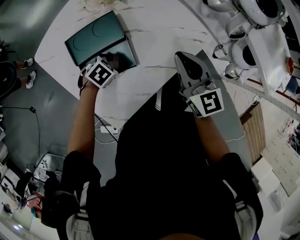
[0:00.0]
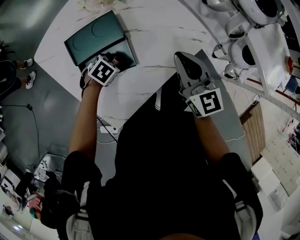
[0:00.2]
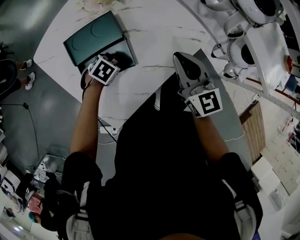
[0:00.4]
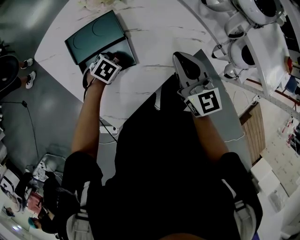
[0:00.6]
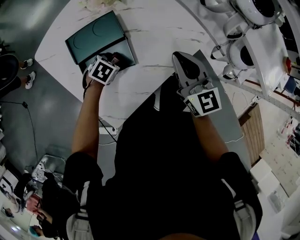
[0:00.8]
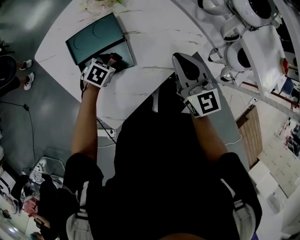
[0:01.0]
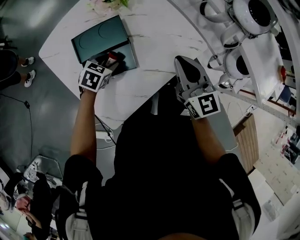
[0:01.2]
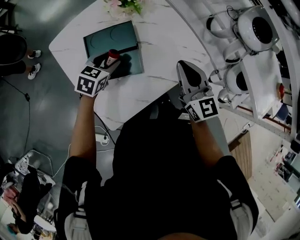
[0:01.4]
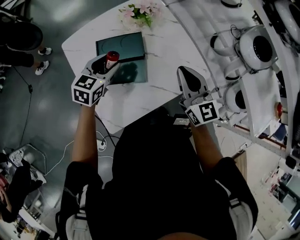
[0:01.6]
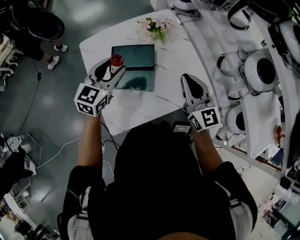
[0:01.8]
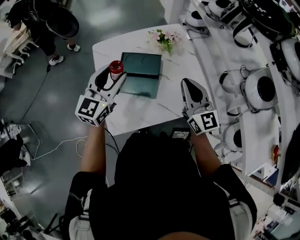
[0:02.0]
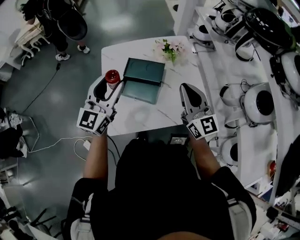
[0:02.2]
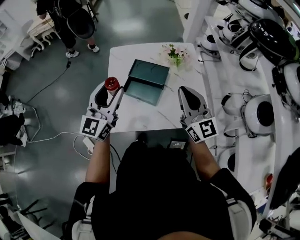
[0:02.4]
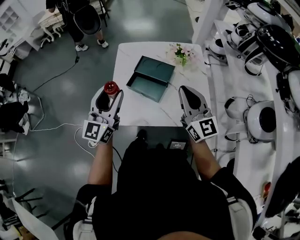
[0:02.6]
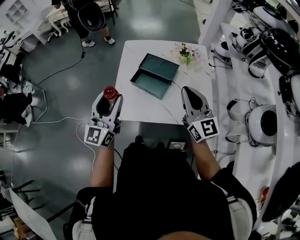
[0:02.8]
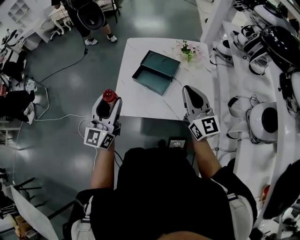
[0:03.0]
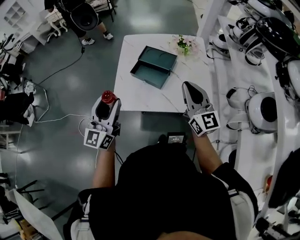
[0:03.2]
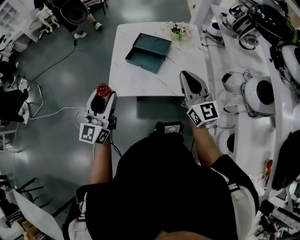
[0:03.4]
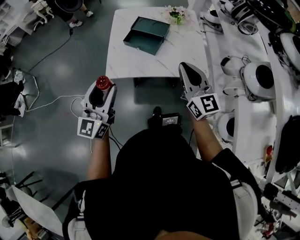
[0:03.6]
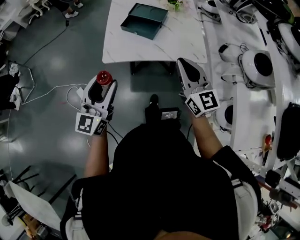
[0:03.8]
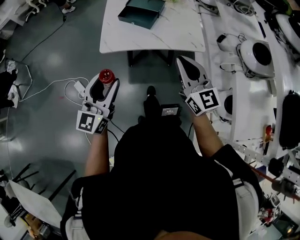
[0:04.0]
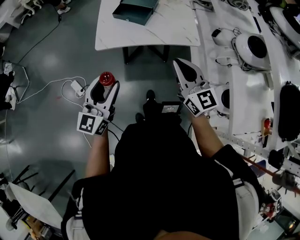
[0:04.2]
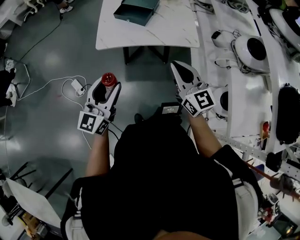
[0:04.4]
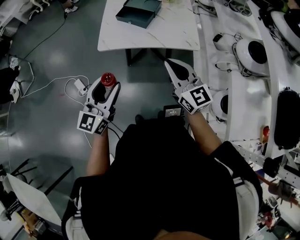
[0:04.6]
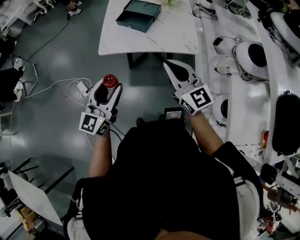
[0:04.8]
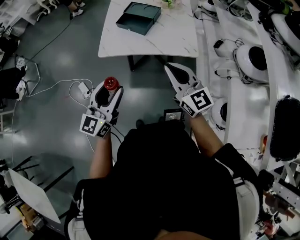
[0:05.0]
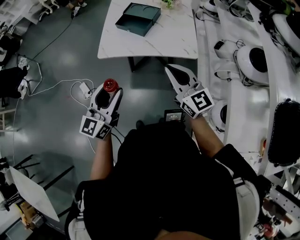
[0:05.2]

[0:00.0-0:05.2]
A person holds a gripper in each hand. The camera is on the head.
0:00.0 to 0:01.8: The right gripper shifts approximately 10 cm upward, and turns by some 20 degrees. Meanwhile the left gripper travels upward by some 30 cm, and tilts its fingers approximately 50 degrees upward.
0:01.8 to 0:03.4: The left gripper changes place by roughly 35 cm, and swivels about 50 degrees, while the right gripper moves roughly 15 cm, and swivels approximately 20 degrees.
0:03.4 to 0:05.2: The right gripper shifts roughly 20 cm backward. Meanwhile the left gripper moves backward and to the right, about 25 cm.

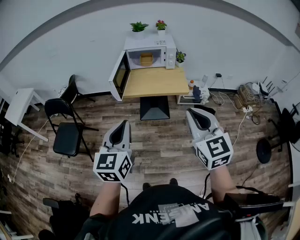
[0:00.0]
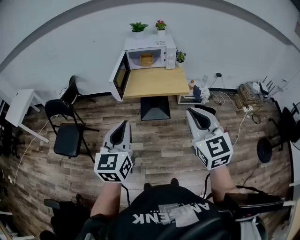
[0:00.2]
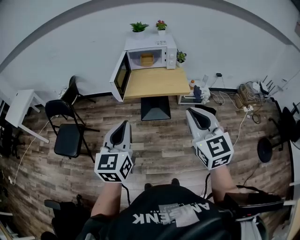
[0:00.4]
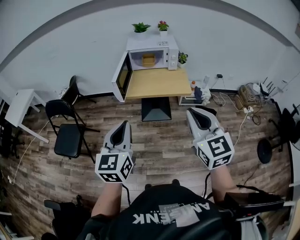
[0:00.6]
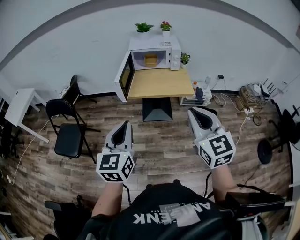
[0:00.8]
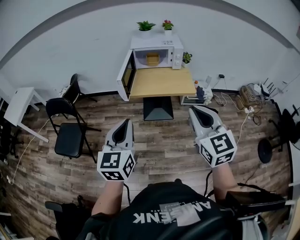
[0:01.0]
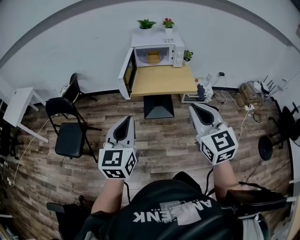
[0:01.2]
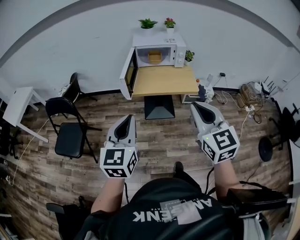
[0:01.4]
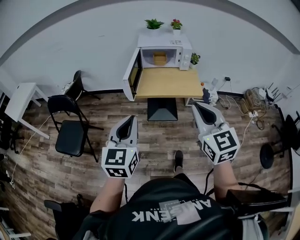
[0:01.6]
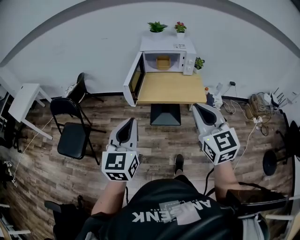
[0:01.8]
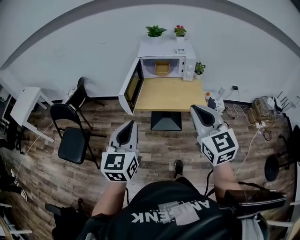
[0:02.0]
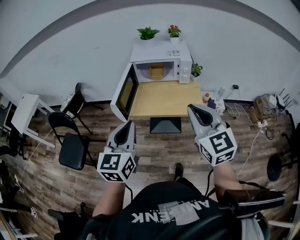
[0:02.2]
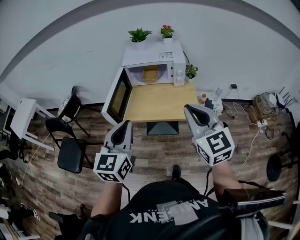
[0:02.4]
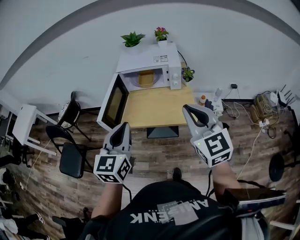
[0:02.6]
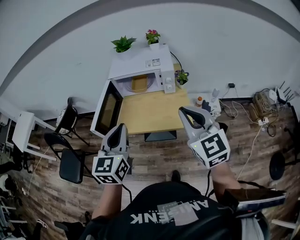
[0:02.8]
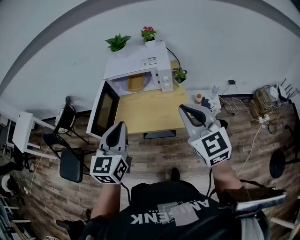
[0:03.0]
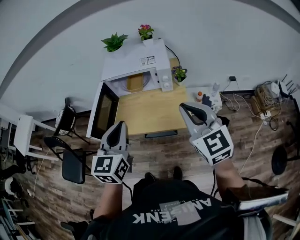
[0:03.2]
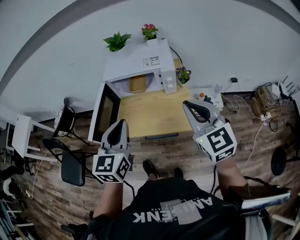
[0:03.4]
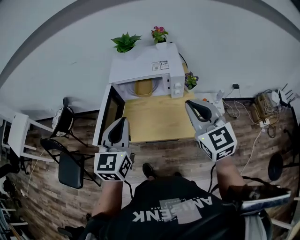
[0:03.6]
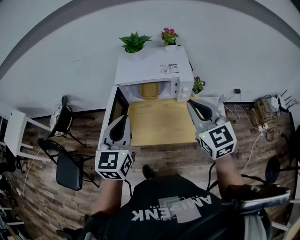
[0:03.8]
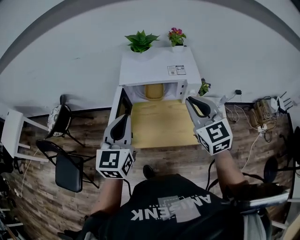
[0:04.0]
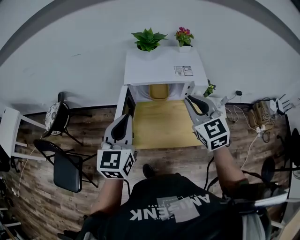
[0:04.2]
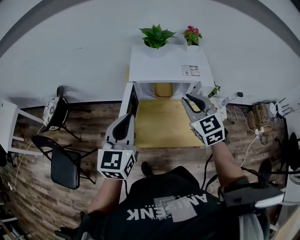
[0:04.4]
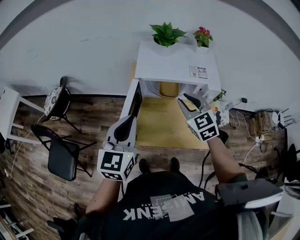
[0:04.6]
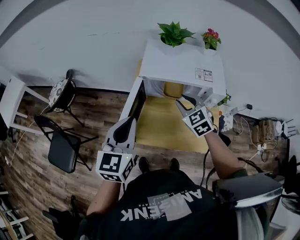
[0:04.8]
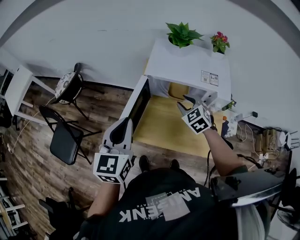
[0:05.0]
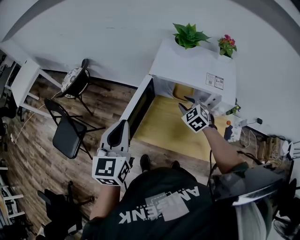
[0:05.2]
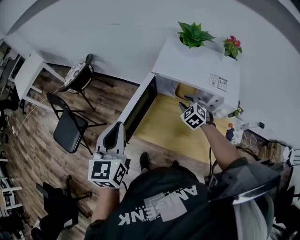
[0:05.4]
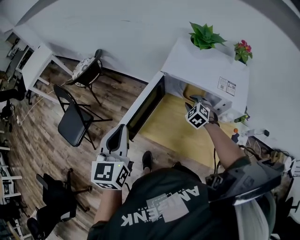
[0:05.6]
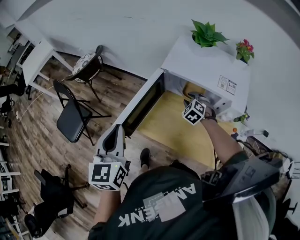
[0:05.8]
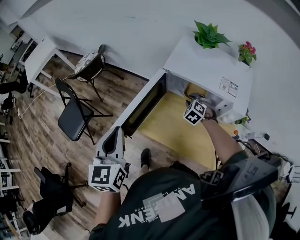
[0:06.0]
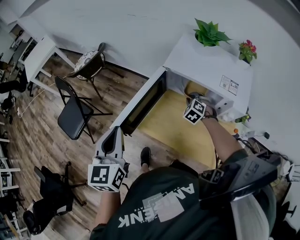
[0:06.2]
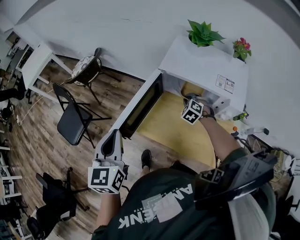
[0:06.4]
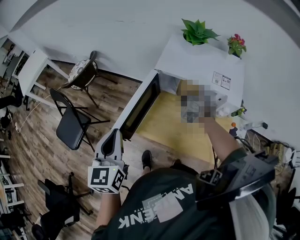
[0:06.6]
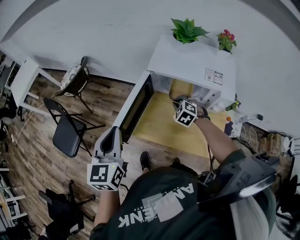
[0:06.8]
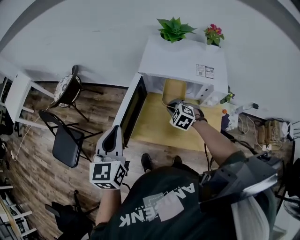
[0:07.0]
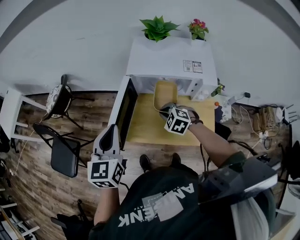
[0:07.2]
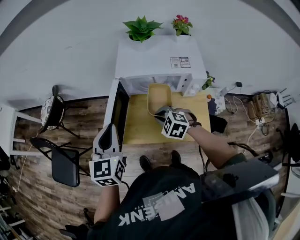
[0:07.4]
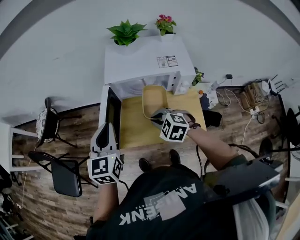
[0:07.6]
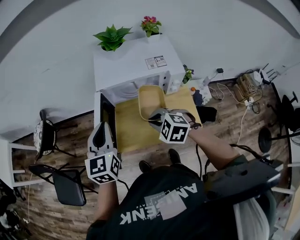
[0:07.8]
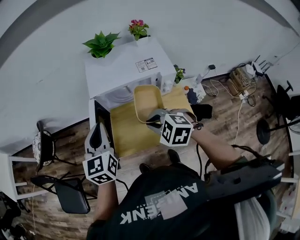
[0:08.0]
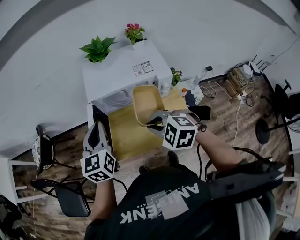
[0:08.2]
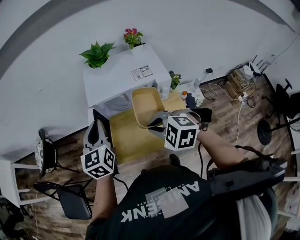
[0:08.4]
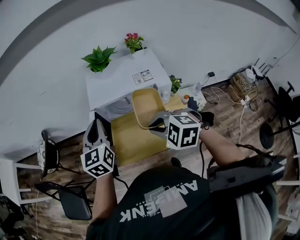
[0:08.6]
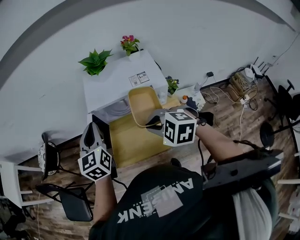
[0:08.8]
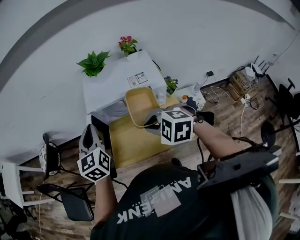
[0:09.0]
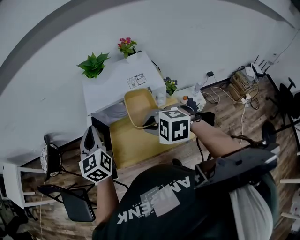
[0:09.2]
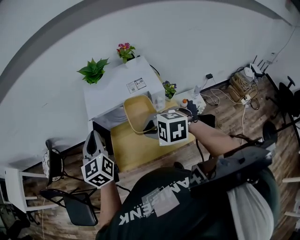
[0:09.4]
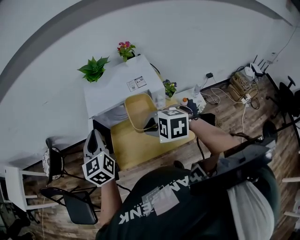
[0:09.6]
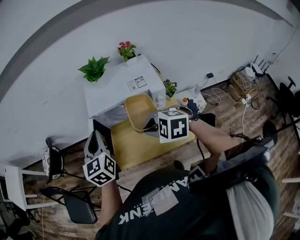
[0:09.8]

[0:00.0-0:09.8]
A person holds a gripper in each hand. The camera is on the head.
0:00.0 to 0:01.4: The two grippers go approximately 5 cm to the left.
0:01.4 to 0:02.8: Both grippers move forward and to the right, approximately 35 cm.
0:02.8 to 0:04.2: The two grippers go about 25 cm forward and to the left.
0:04.2 to 0:05.6: The left gripper heads to the left, covering about 5 cm, and swivels about 30 degrees. Meanwhile the right gripper goes approximately 30 cm downward and forward, tilts its fingers about 30 degrees downward, and opens up.
0:05.6 to 0:07.0: The right gripper shifts about 10 cm backward and to the left, and closes.
0:07.0 to 0:08.4: The left gripper moves forward and to the right, approximately 15 cm. Meanwhile the right gripper goes about 20 cm upward and backward.
0:08.4 to 0:09.8: The grippers stay close to where they were, moving slightly.

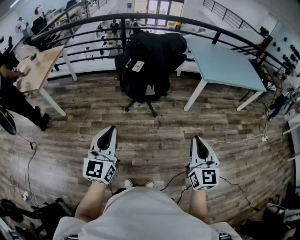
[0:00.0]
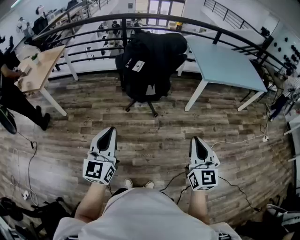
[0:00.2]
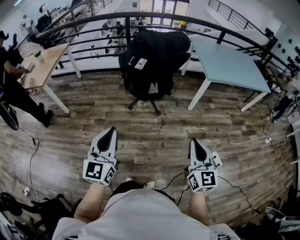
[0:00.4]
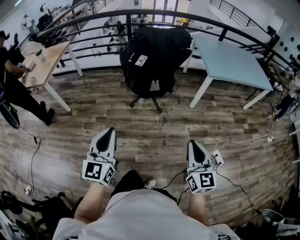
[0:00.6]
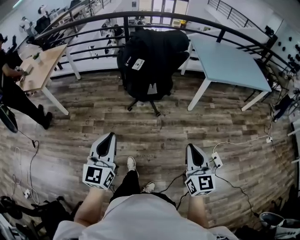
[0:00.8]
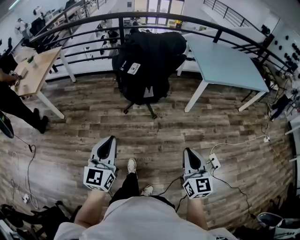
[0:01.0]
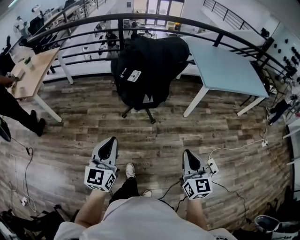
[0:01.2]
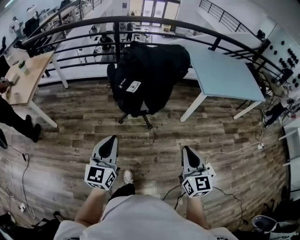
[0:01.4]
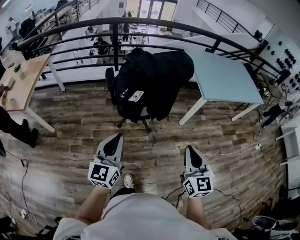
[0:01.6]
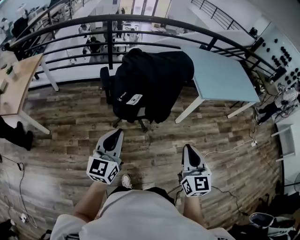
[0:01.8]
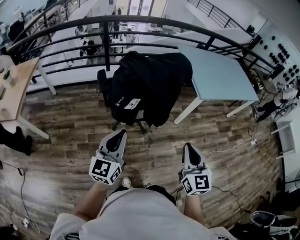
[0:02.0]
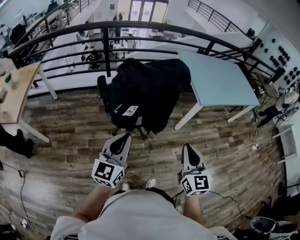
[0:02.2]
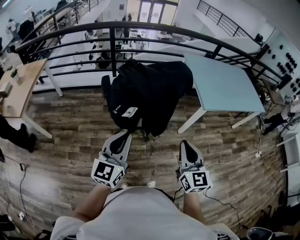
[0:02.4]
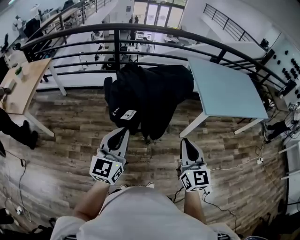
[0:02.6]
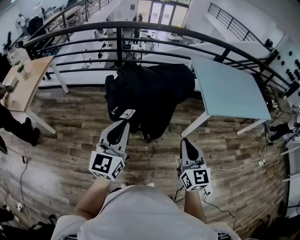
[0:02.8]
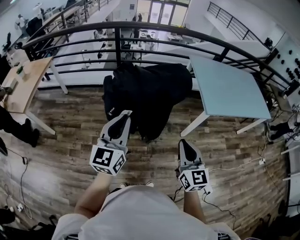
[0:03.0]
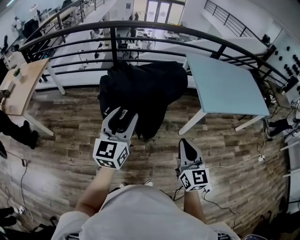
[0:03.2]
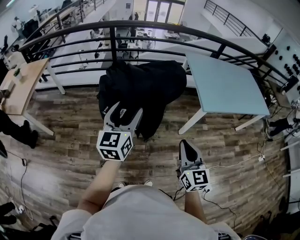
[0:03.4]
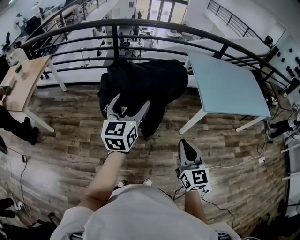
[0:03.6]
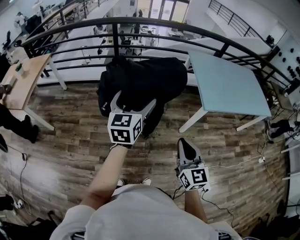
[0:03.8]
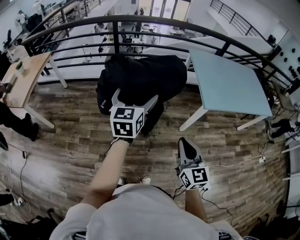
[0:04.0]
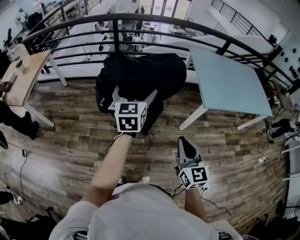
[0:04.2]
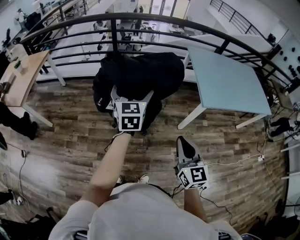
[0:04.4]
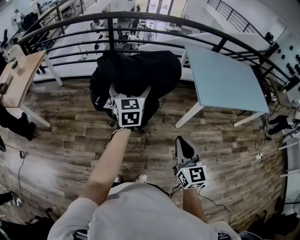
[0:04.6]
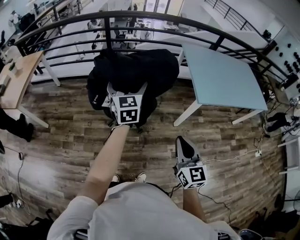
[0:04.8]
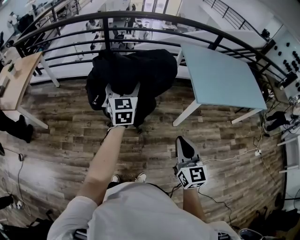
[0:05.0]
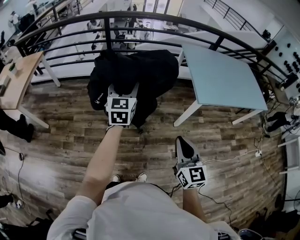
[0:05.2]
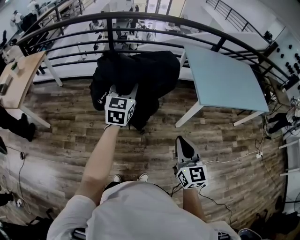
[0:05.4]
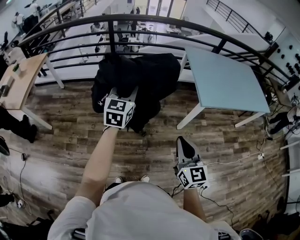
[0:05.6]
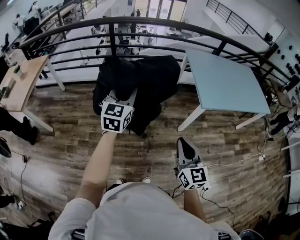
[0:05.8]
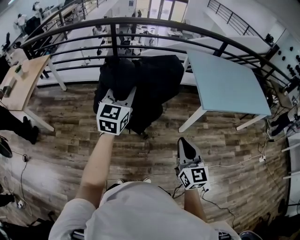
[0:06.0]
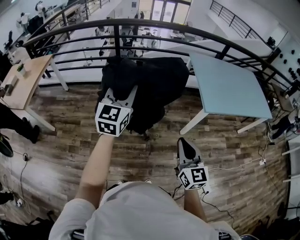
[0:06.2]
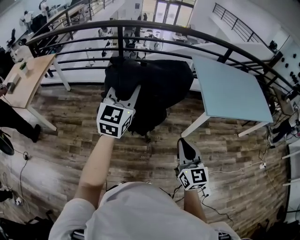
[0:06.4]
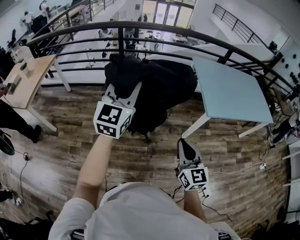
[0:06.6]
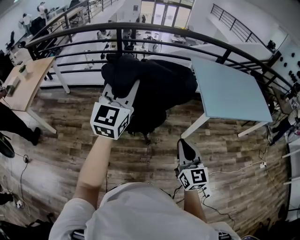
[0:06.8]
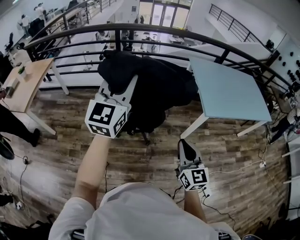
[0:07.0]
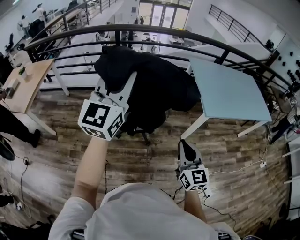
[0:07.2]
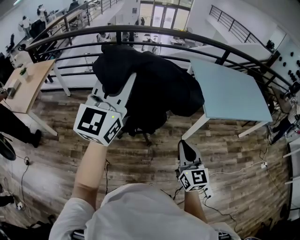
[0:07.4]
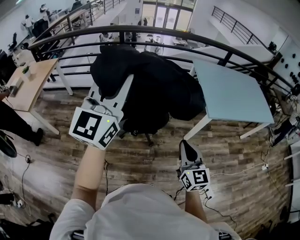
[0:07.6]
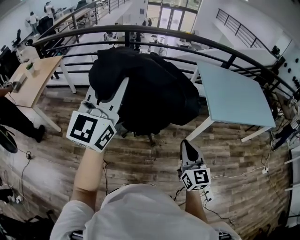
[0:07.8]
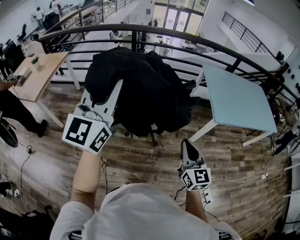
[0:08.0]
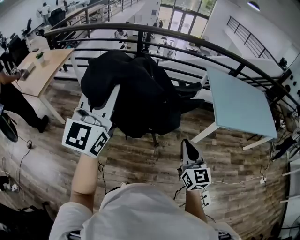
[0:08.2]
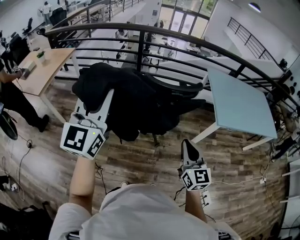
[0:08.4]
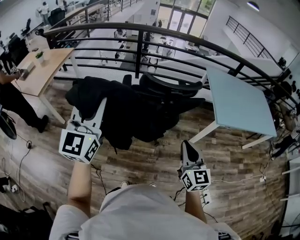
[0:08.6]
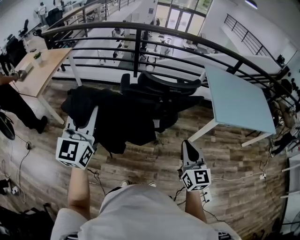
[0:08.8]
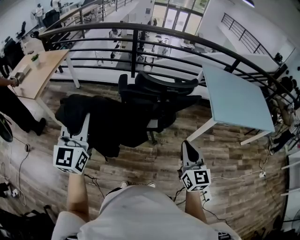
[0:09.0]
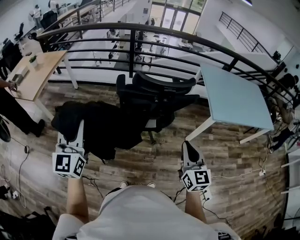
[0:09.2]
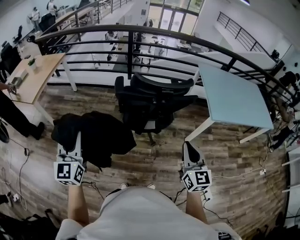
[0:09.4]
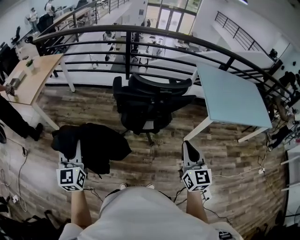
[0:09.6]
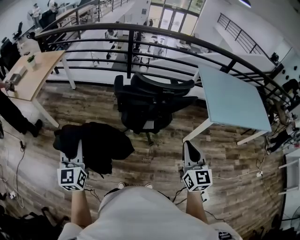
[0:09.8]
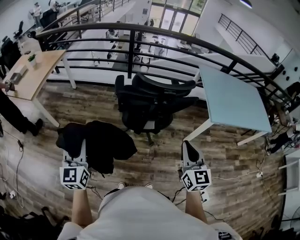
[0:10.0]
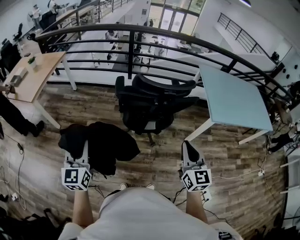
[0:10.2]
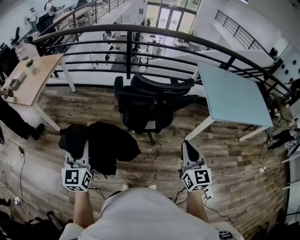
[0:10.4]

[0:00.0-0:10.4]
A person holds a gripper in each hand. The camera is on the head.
0:00.0 to 0:01.4: Both grippers travel together forward, some 15 cm.
0:01.4 to 0:03.0: Both grippers move forward, roughly 20 cm.
0:03.0 to 0:04.4: The left gripper moves forward and to the right, some 15 cm, rotates some 20 degrees, and opens.
0:04.4 to 0:06.0: The left gripper closes up.
0:06.0 to 0:07.4: The left gripper goes about 20 cm upward and backward, and swivels some 20 degrees.
0:07.4 to 0:09.0: The left gripper moves to the left, backward and downward, approximately 25 cm, and changes its angle by some 20 degrees. Meanwhile the right gripper heads to the left, covering approximately 5 cm.
0:09.0 to 0:10.4: The left gripper moves downward, approximately 10 cm.
